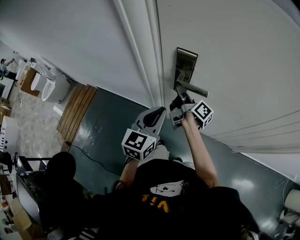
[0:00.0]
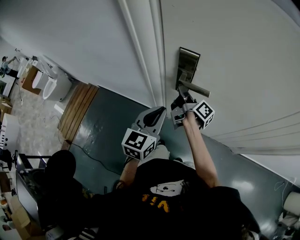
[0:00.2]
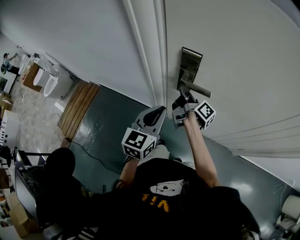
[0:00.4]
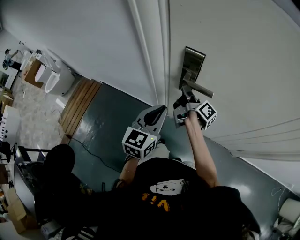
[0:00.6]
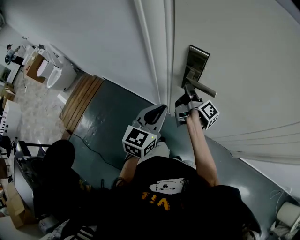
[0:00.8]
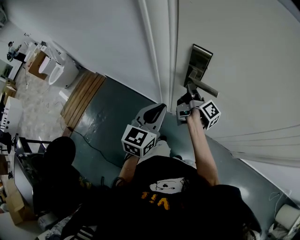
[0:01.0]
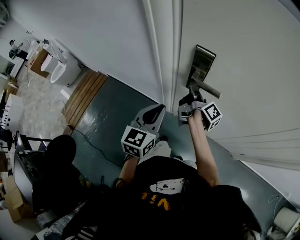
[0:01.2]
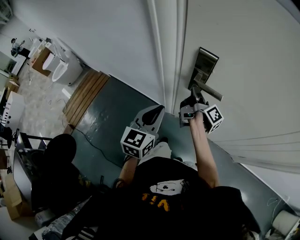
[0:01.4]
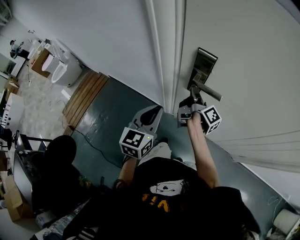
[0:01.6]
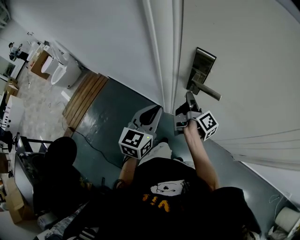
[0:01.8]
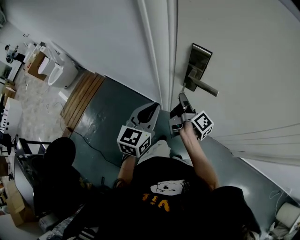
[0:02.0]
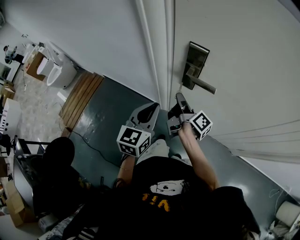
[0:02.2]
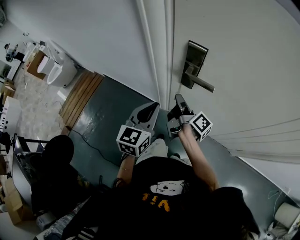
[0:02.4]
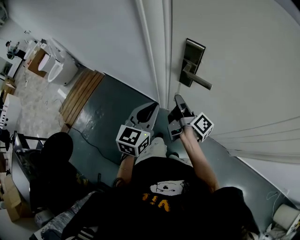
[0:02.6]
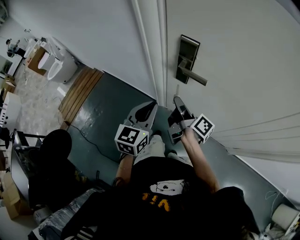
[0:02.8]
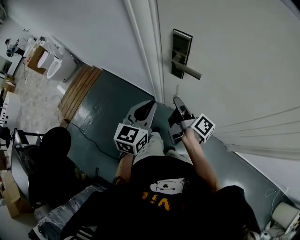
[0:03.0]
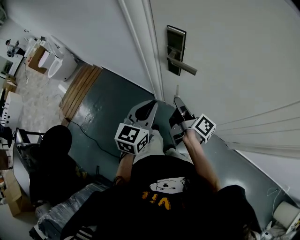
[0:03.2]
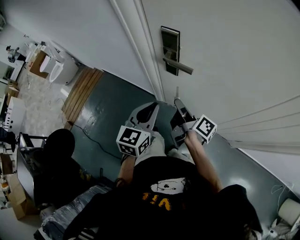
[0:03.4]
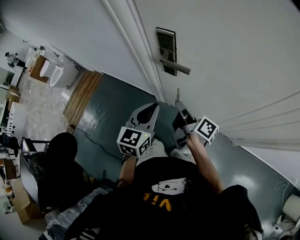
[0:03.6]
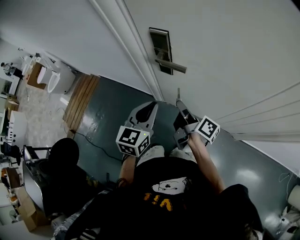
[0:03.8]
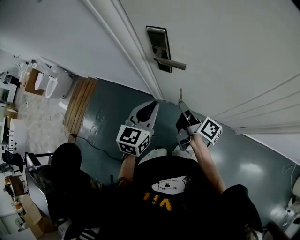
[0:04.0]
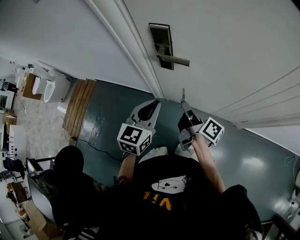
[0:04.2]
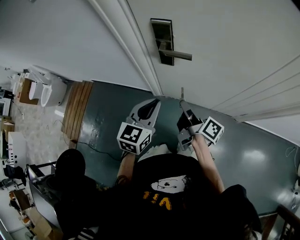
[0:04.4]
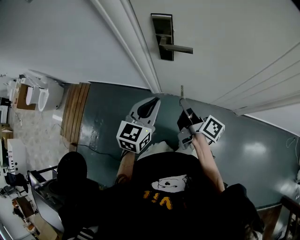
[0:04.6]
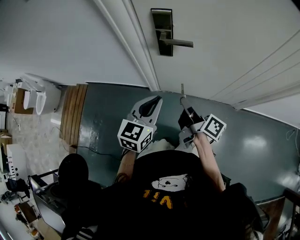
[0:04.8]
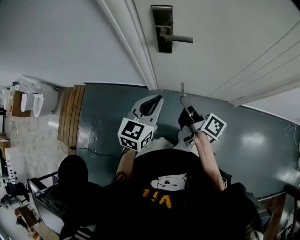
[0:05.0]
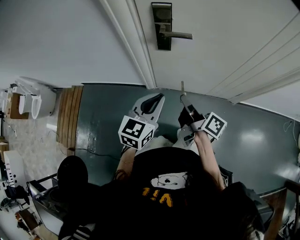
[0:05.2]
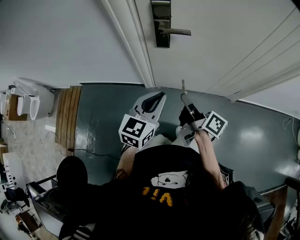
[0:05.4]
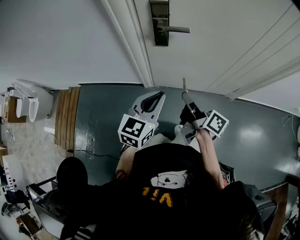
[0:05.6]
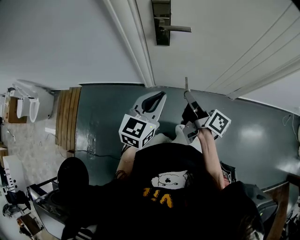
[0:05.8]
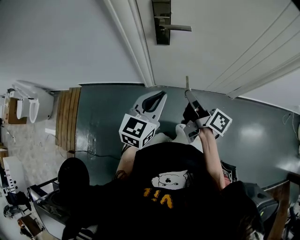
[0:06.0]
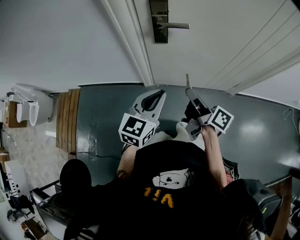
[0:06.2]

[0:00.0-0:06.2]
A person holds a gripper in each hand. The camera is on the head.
0:00.0 to 0:01.6: The left gripper is displaced to the left by some 5 cm.
0:01.6 to 0:03.2: The left gripper shifts some 10 cm to the right and backward. The right gripper travels backward by approximately 15 cm, and turns by some 20 degrees.
0:03.2 to 0:04.6: The left gripper swivels some 20 degrees, while the right gripper moves backward, some 10 cm.
0:04.6 to 0:06.2: The grippers both shift backward by some 5 cm.

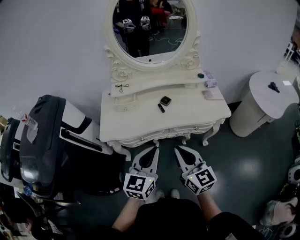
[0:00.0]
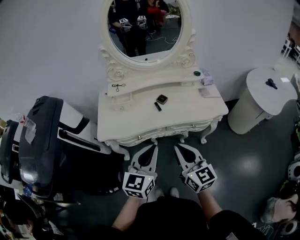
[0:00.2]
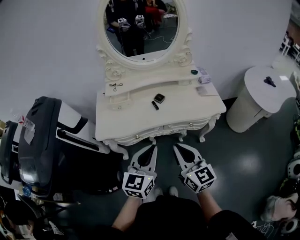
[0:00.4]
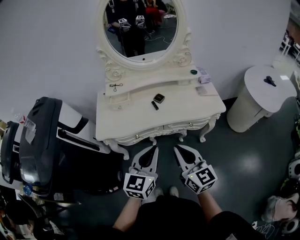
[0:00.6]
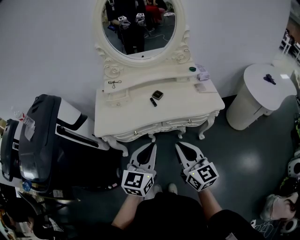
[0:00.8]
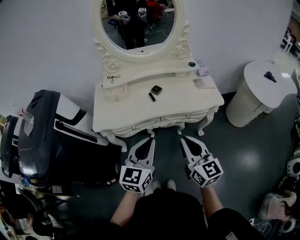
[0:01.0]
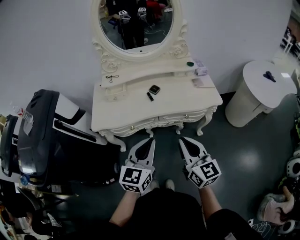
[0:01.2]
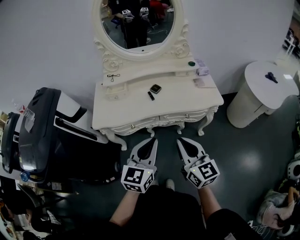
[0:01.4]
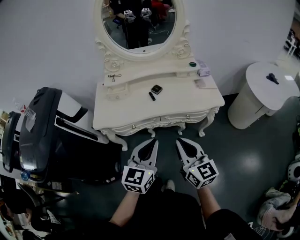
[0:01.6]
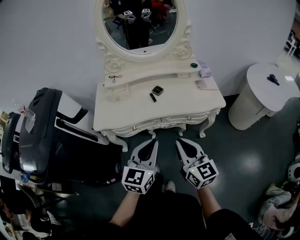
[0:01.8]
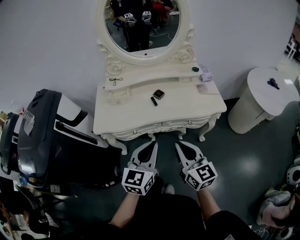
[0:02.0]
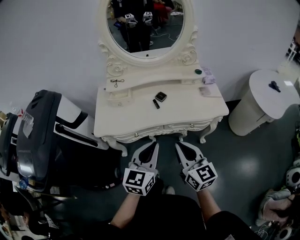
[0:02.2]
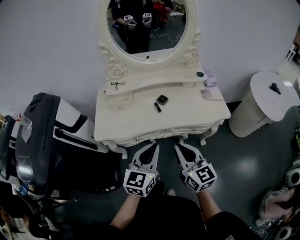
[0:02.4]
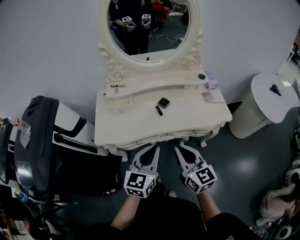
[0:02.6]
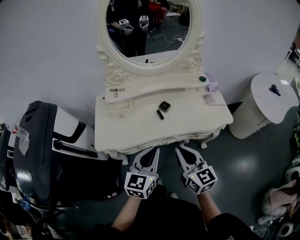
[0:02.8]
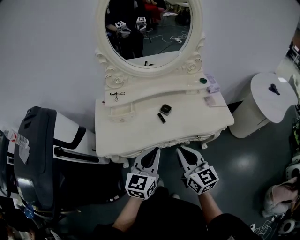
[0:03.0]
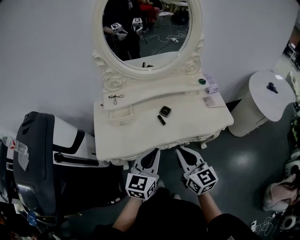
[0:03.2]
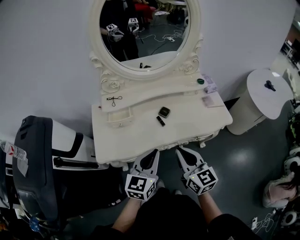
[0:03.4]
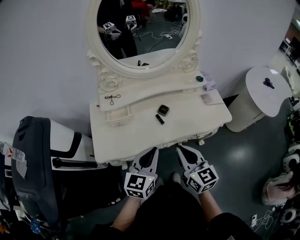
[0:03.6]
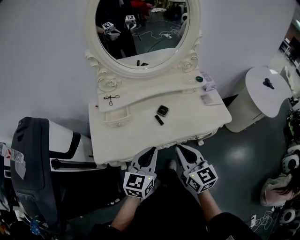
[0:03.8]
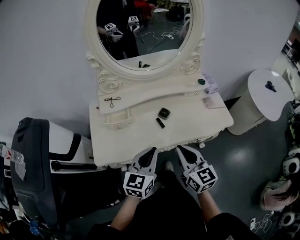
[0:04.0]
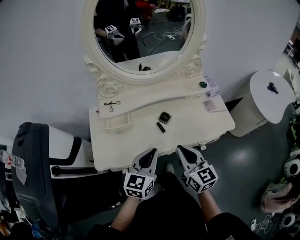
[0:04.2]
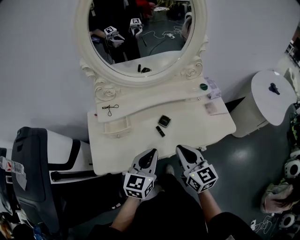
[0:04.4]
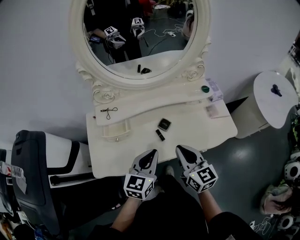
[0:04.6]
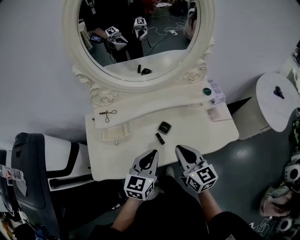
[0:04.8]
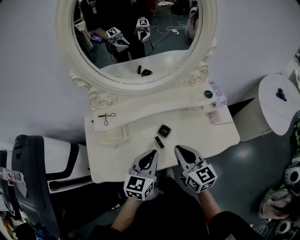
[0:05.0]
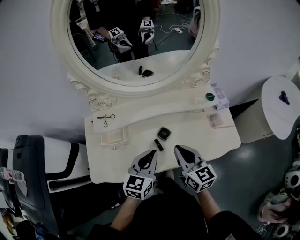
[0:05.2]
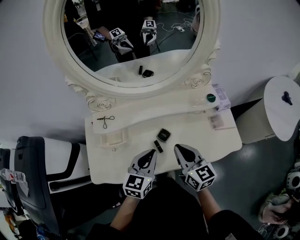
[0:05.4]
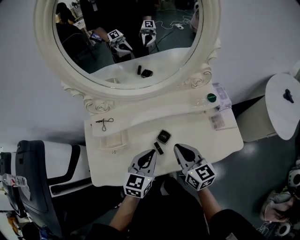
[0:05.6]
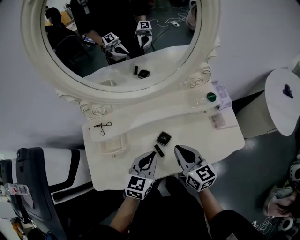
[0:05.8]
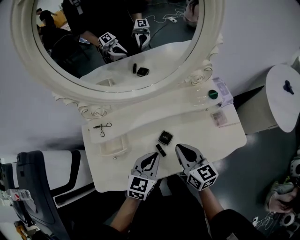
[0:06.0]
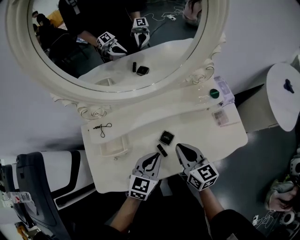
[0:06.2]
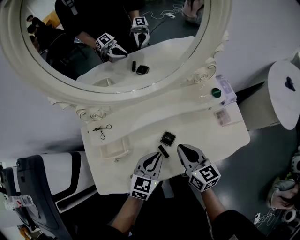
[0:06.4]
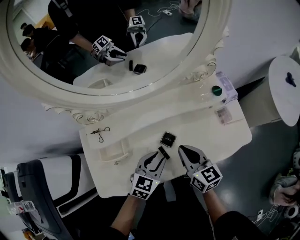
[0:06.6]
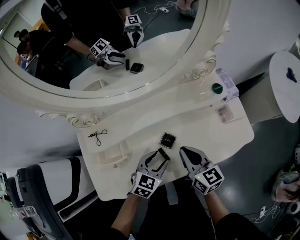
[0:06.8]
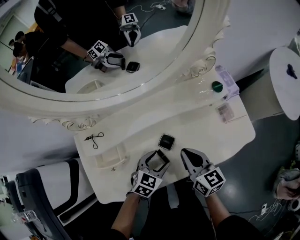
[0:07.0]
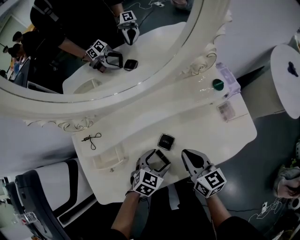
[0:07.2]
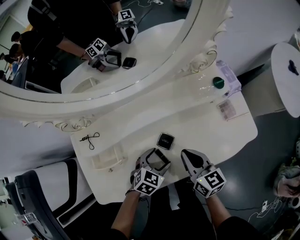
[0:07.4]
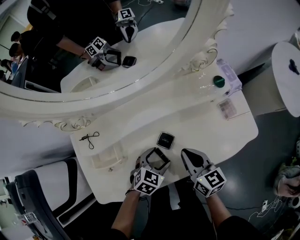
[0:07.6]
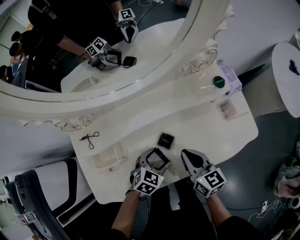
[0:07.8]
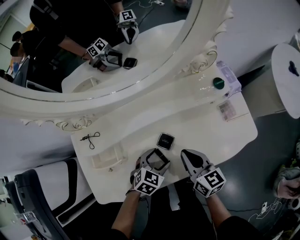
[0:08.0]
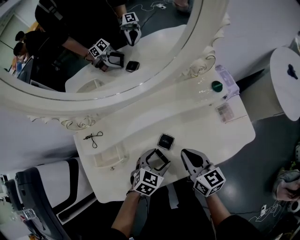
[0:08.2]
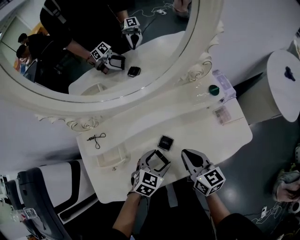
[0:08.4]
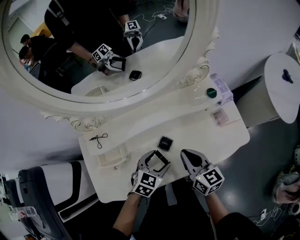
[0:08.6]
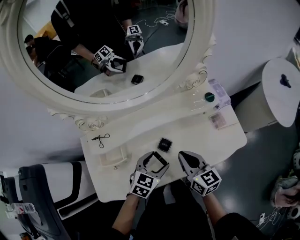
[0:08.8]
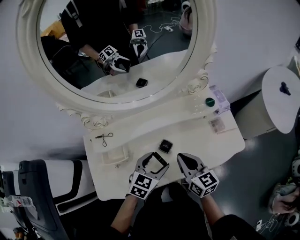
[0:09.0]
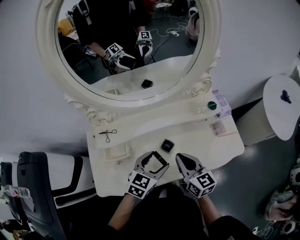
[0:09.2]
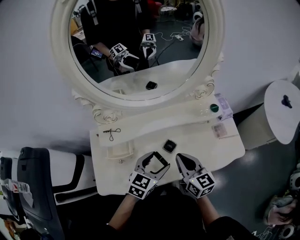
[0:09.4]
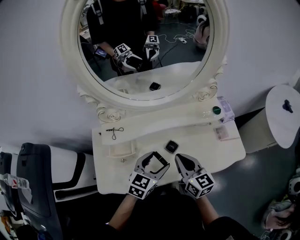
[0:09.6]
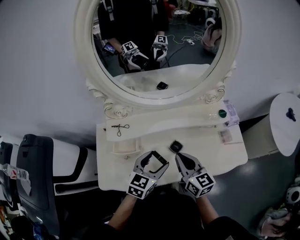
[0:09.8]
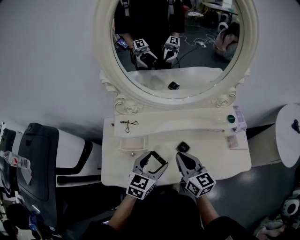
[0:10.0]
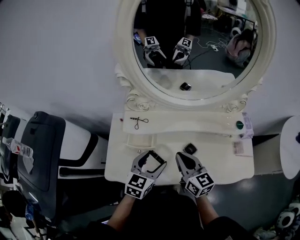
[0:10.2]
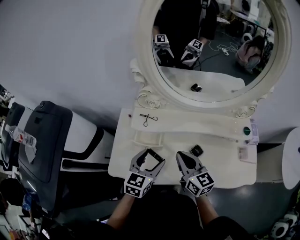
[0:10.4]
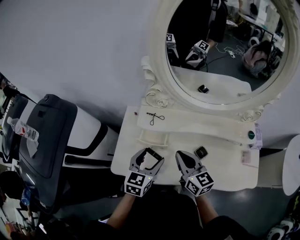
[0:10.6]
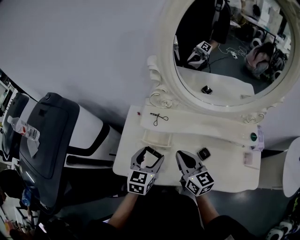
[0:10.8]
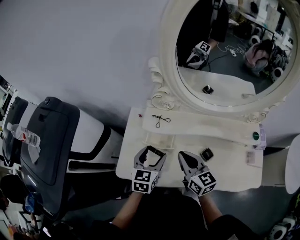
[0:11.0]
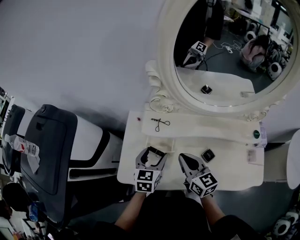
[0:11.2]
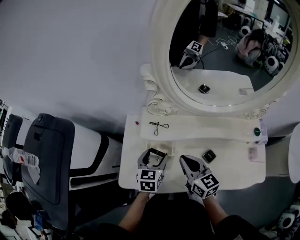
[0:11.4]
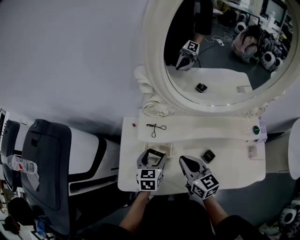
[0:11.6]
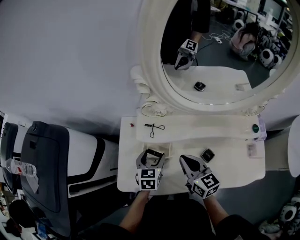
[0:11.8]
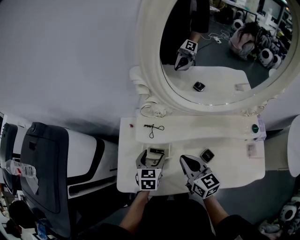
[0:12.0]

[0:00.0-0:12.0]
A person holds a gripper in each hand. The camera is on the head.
0:00.0 to 0:01.6: Both grippers move to the right, some 10 cm.
0:01.6 to 0:03.0: Both grippers travel together forward and to the left, about 20 cm.
0:03.0 to 0:04.4: The two grippers go approximately 10 cm forward.
0:04.4 to 0:06.0: Both grippers travel together forward and downward, roughly 15 cm.
0:06.0 to 0:07.6: The left gripper goes roughly 15 cm downward, rotates about 30 degrees, and opens its fingers; the right gripper is displaced downward by some 10 cm.
0:07.6 to 0:09.0: The right gripper heads upward, covering some 10 cm, while the left gripper is displaced upward by approximately 15 cm.
0:09.0 to 0:10.4: The left gripper ends up some 20 cm from where it was, and swivels approximately 30 degrees. Meanwhile the right gripper ends up some 15 cm from where it was, and swivels approximately 20 degrees.
0:10.4 to 0:12.0: The left gripper shifts some 15 cm forward, downward and to the left, while the right gripper shifts about 5 cm forward.

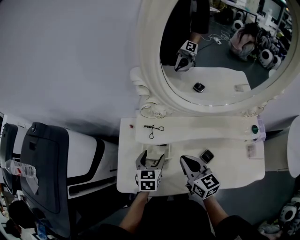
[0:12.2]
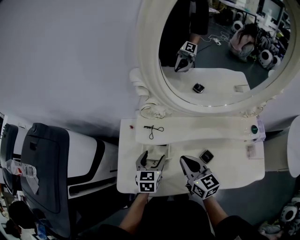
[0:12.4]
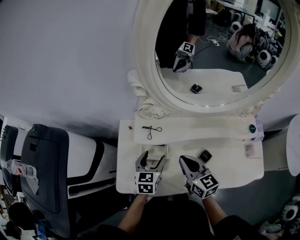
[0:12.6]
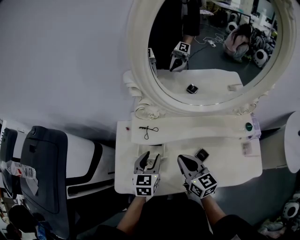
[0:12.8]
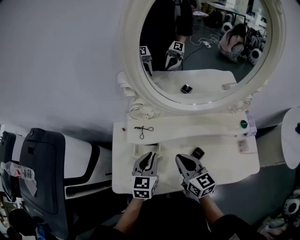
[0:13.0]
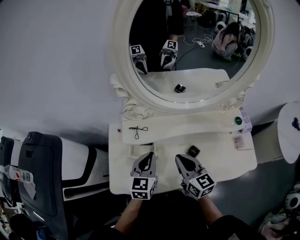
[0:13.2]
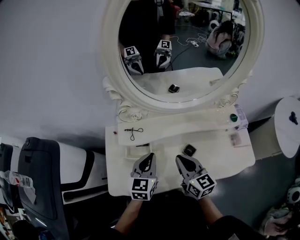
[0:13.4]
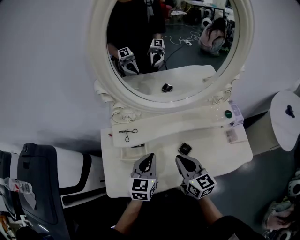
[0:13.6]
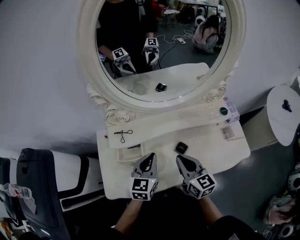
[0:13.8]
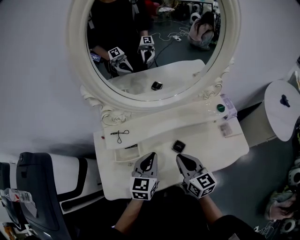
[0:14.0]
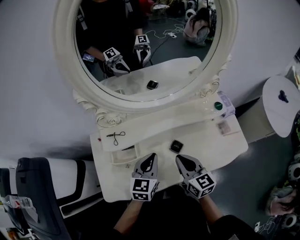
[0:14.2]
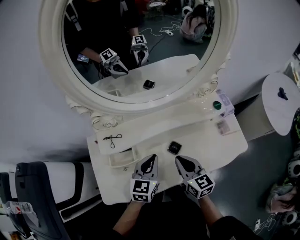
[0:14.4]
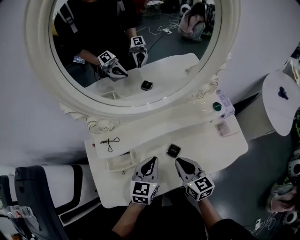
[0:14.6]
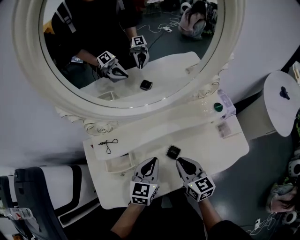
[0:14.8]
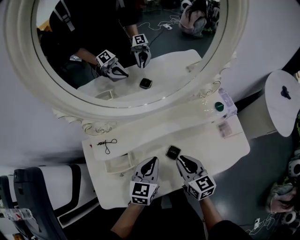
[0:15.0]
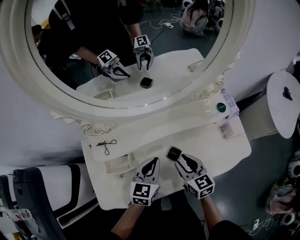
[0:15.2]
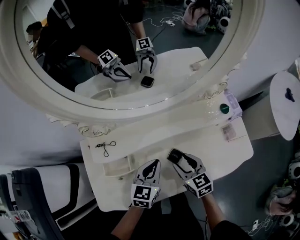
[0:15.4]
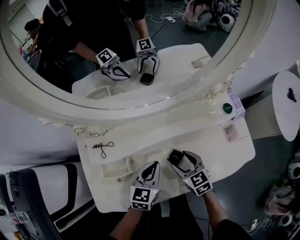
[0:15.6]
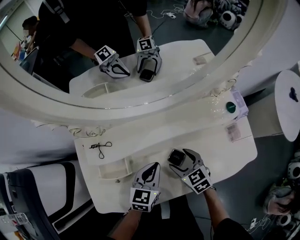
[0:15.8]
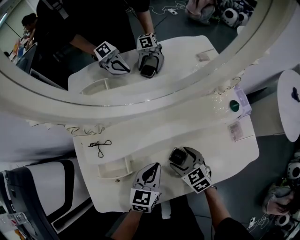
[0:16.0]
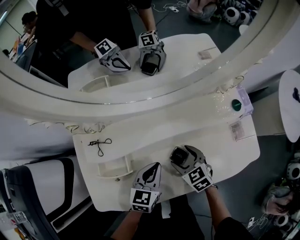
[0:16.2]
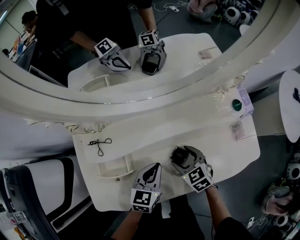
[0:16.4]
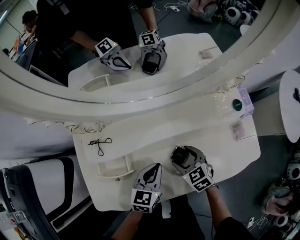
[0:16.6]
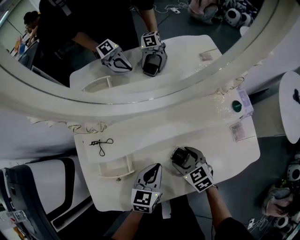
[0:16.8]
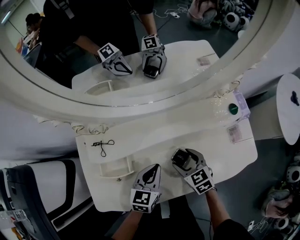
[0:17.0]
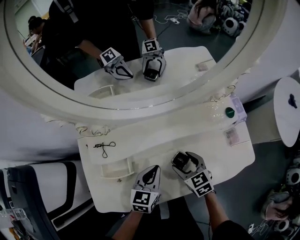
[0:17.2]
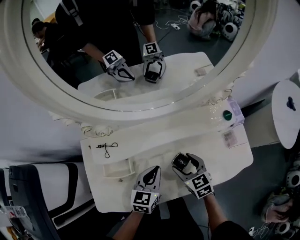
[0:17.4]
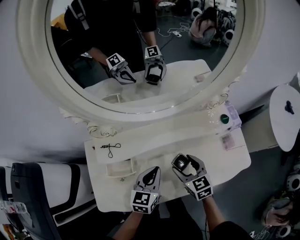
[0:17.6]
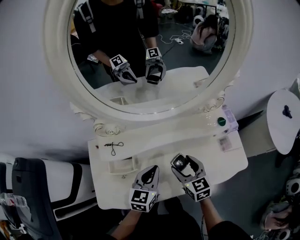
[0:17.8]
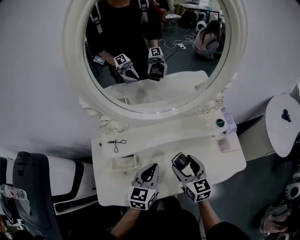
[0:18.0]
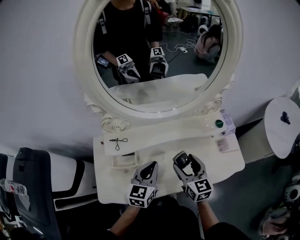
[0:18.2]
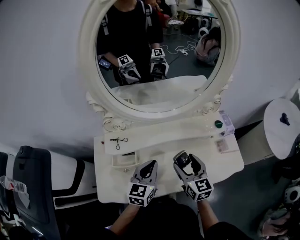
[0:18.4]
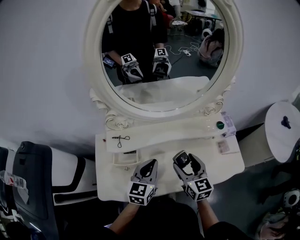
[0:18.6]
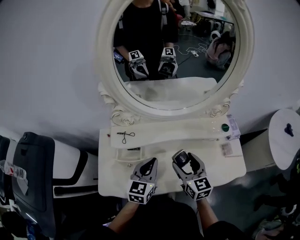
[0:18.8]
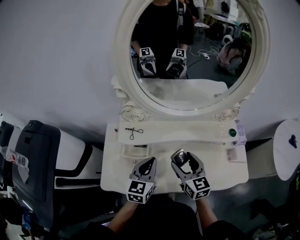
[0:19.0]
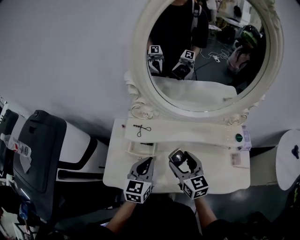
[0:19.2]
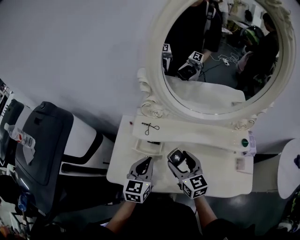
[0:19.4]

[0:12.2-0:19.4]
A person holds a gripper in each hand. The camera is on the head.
0:12.2 to 0:13.6: The left gripper is displaced to the right, upward and backward by some 15 cm, turns by some 20 degrees, and closes its fingers; the right gripper travels to the right and backward by some 10 cm.
0:13.6 to 0:15.0: Both grippers move to the right and downward, about 10 cm.
0:15.0 to 0:16.6: The left gripper heads downward, covering about 10 cm. Meanwhile the right gripper shifts some 15 cm downward, swivels roughly 30 degrees, and opens.
0:16.6 to 0:18.0: Both grippers move upward, approximately 15 cm. The right gripper rotates about 30 degrees.
0:18.0 to 0:19.4: The grippers both shift to the left by about 15 cm. The right gripper turns by approximately 20 degrees; the left gripper rotates roughly 20 degrees.
